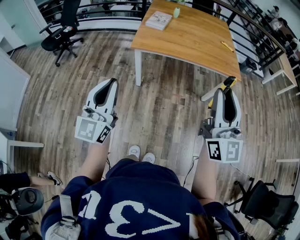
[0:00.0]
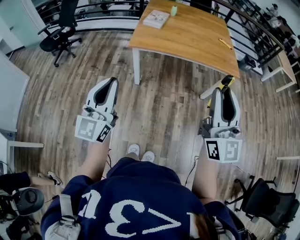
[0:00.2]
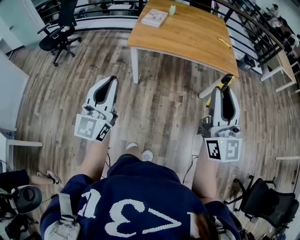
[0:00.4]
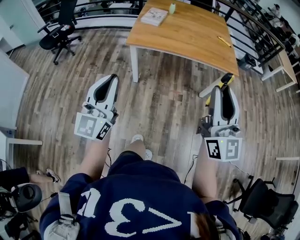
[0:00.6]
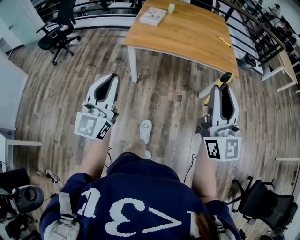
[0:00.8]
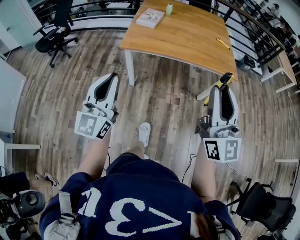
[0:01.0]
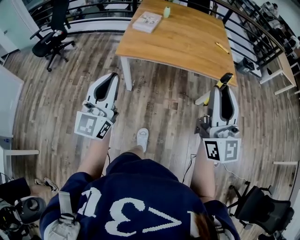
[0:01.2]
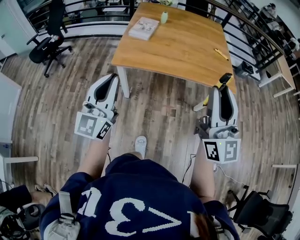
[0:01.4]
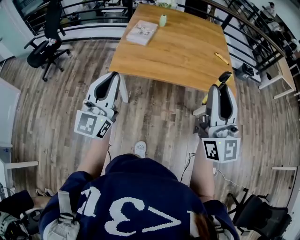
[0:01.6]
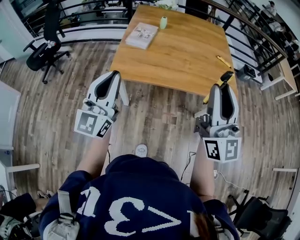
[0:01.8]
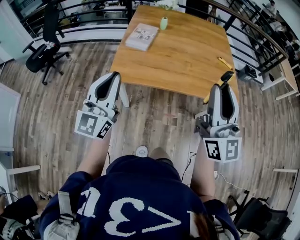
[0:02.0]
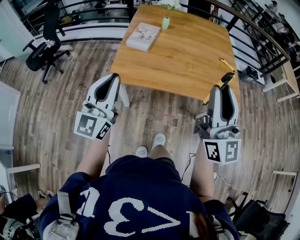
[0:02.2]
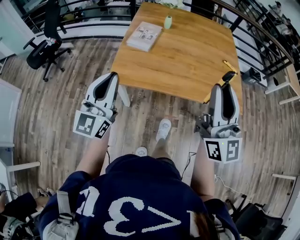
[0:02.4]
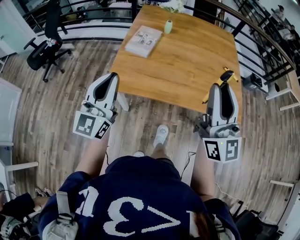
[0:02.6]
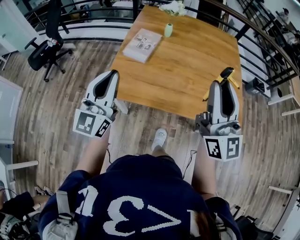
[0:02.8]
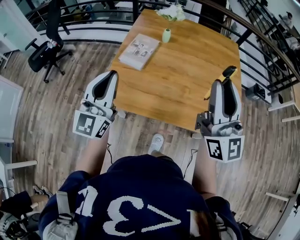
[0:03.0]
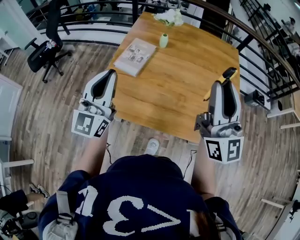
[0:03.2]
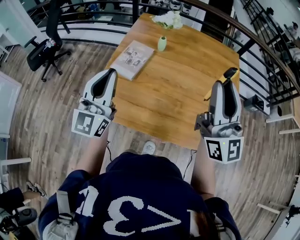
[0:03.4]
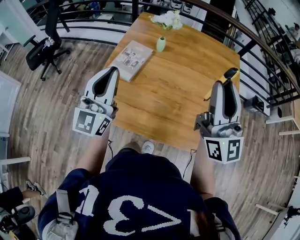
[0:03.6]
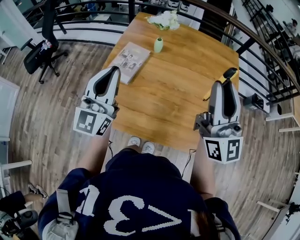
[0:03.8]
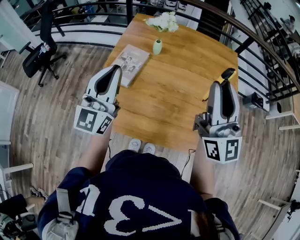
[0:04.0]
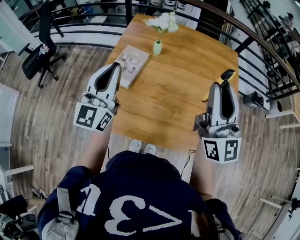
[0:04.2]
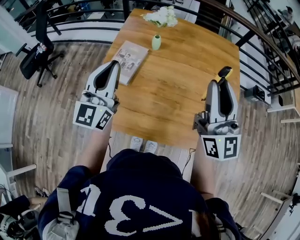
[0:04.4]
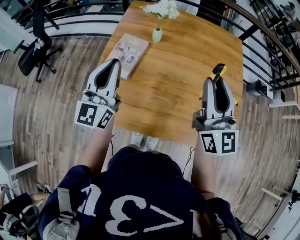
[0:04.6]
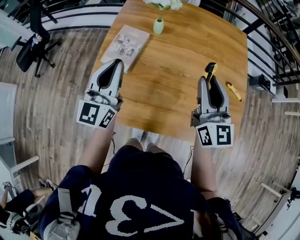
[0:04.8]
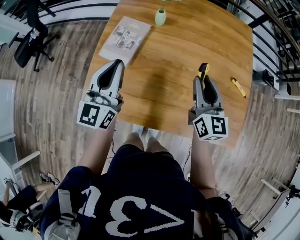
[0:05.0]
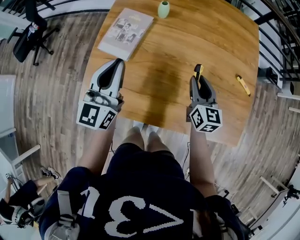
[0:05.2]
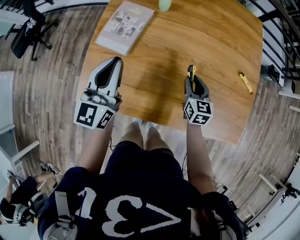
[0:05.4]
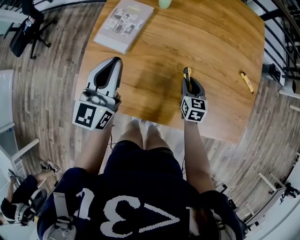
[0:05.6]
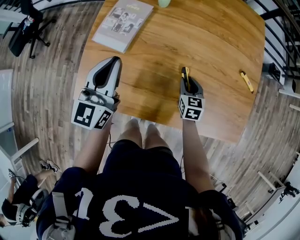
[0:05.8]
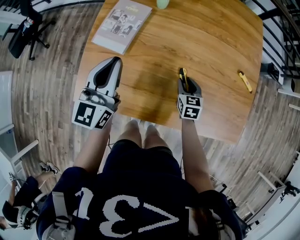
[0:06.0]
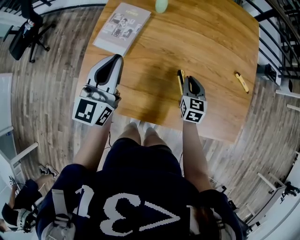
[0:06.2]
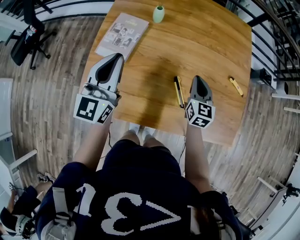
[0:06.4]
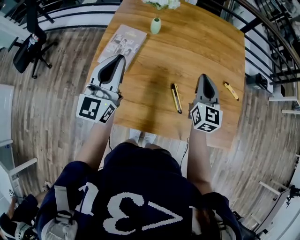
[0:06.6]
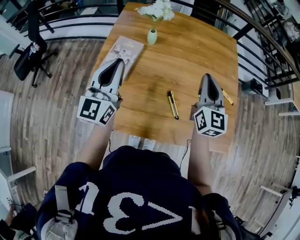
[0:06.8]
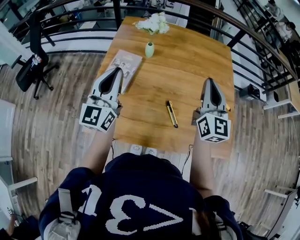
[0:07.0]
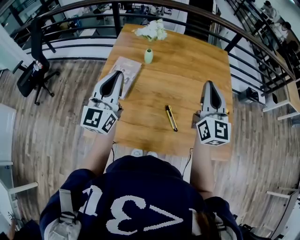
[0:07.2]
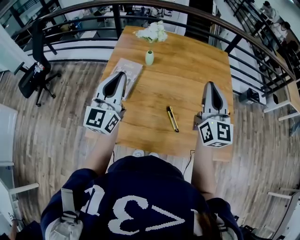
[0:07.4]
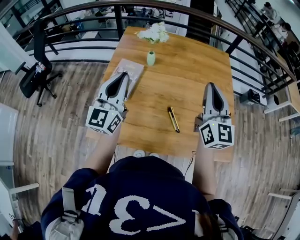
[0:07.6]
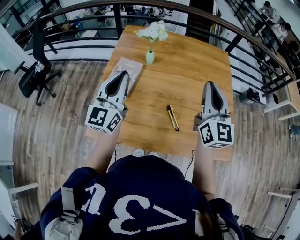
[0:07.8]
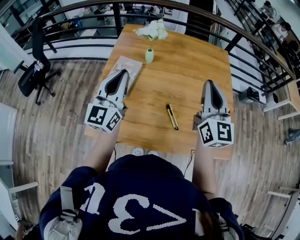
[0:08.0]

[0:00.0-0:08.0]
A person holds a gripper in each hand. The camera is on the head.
0:00.0 to 0:01.6: Both grippers move forward, approximately 25 cm.
0:01.6 to 0:03.2: Both grippers travel together forward, some 30 cm.
0:03.2 to 0:04.8: Both grippers travel together forward and downward, approximately 15 cm. The right gripper turns by roughly 20 degrees.
0:04.8 to 0:06.4: The right gripper goes approximately 20 cm downward, rotates roughly 30 degrees, and closes up.
0:06.4 to 0:08.0: The right gripper shifts approximately 25 cm upward, and rotates roughly 30 degrees, while the left gripper travels upward by approximately 10 cm.

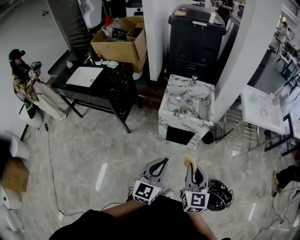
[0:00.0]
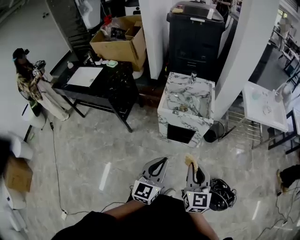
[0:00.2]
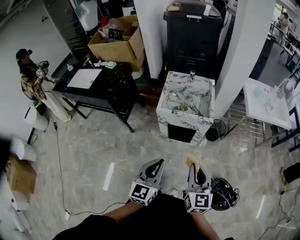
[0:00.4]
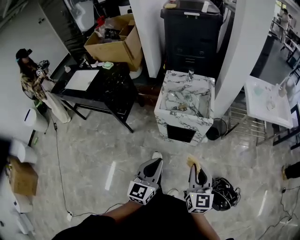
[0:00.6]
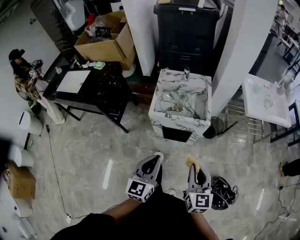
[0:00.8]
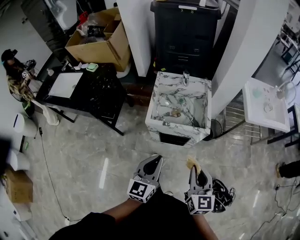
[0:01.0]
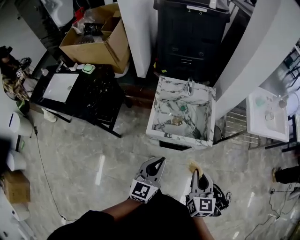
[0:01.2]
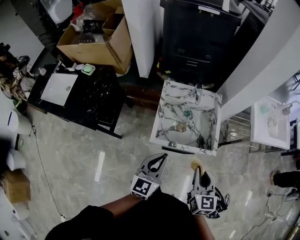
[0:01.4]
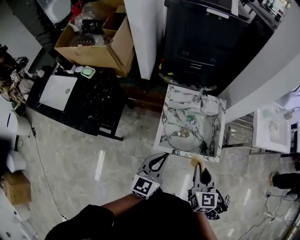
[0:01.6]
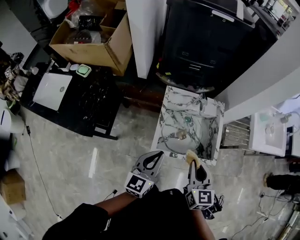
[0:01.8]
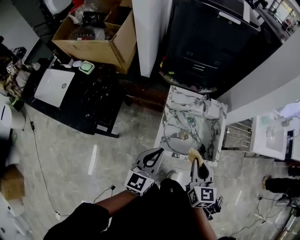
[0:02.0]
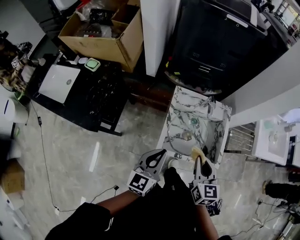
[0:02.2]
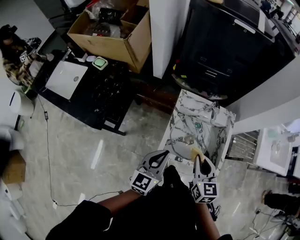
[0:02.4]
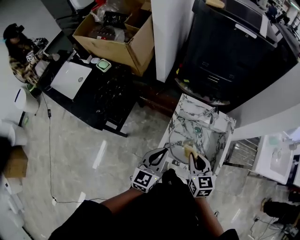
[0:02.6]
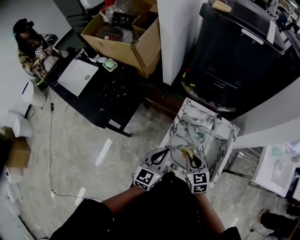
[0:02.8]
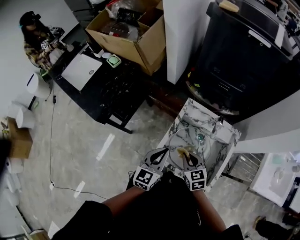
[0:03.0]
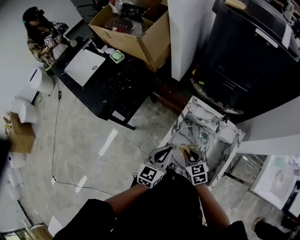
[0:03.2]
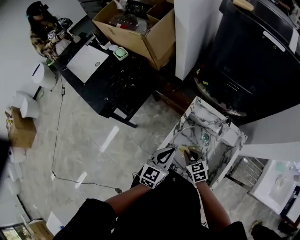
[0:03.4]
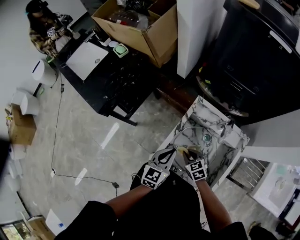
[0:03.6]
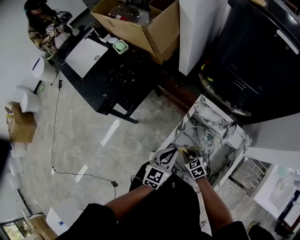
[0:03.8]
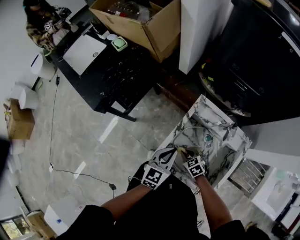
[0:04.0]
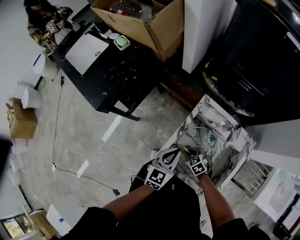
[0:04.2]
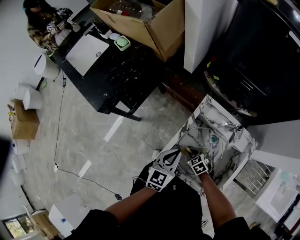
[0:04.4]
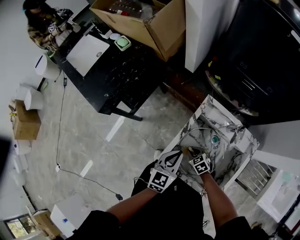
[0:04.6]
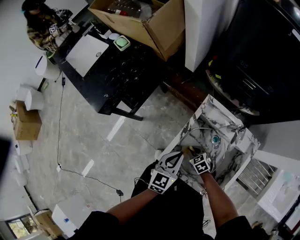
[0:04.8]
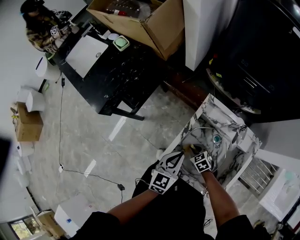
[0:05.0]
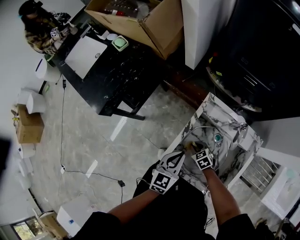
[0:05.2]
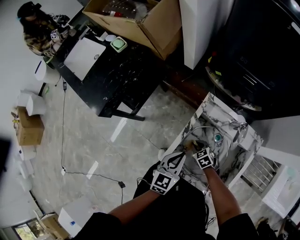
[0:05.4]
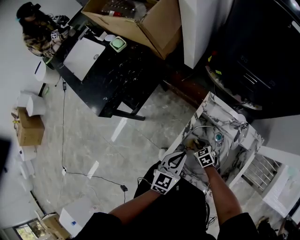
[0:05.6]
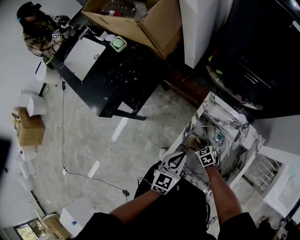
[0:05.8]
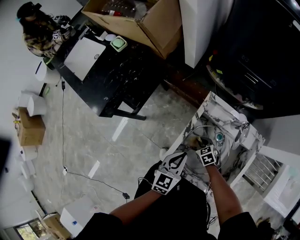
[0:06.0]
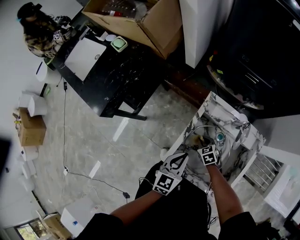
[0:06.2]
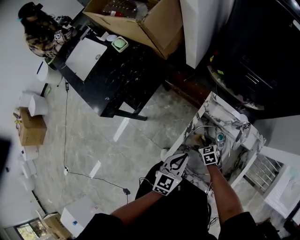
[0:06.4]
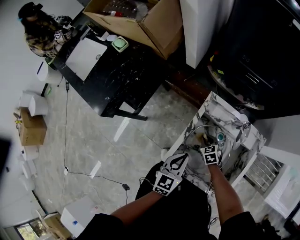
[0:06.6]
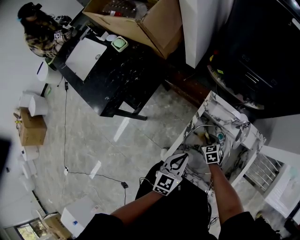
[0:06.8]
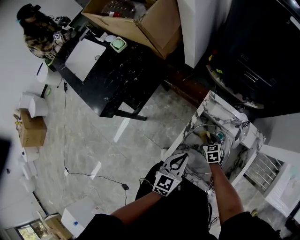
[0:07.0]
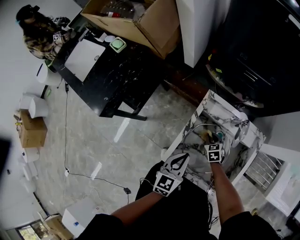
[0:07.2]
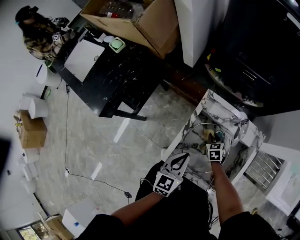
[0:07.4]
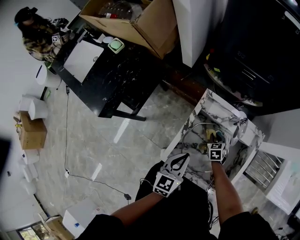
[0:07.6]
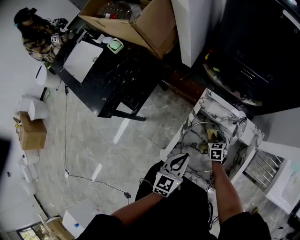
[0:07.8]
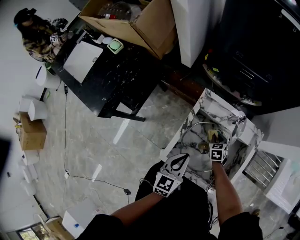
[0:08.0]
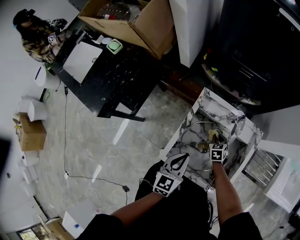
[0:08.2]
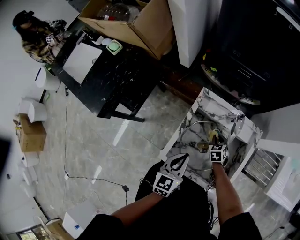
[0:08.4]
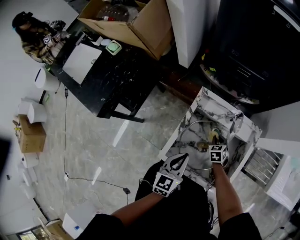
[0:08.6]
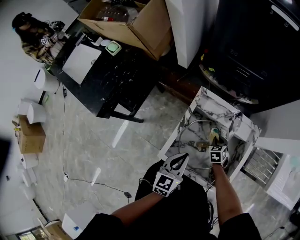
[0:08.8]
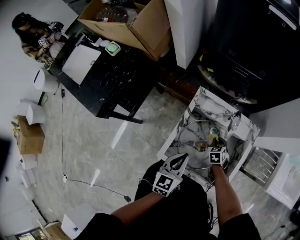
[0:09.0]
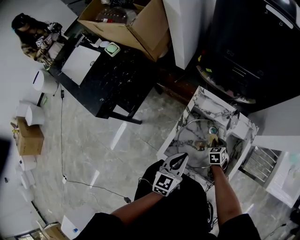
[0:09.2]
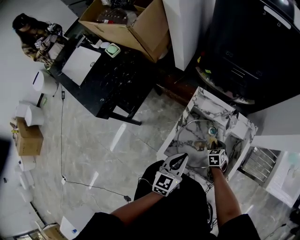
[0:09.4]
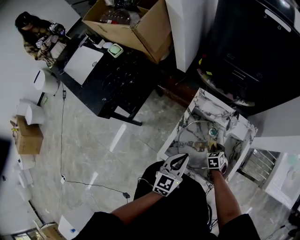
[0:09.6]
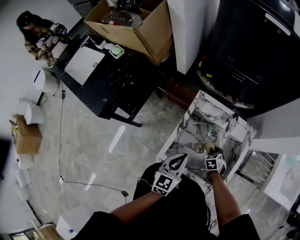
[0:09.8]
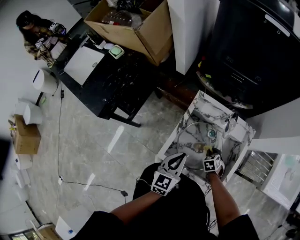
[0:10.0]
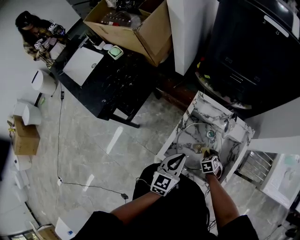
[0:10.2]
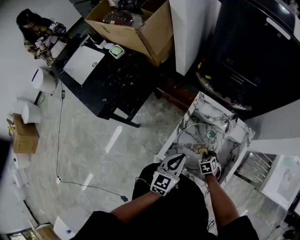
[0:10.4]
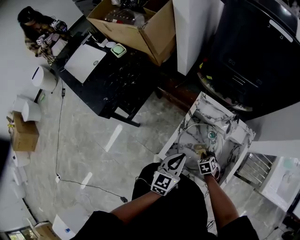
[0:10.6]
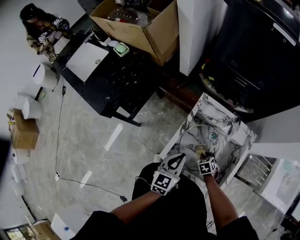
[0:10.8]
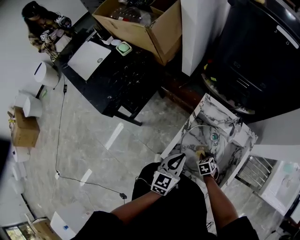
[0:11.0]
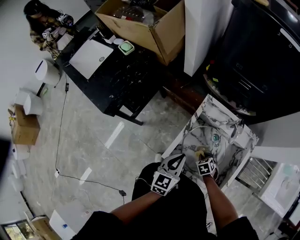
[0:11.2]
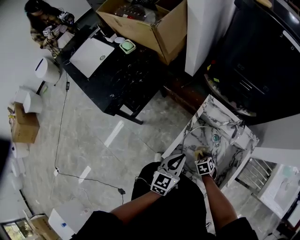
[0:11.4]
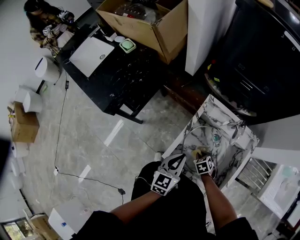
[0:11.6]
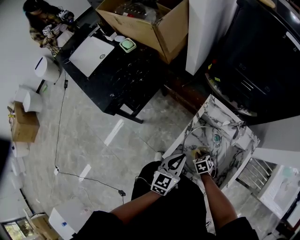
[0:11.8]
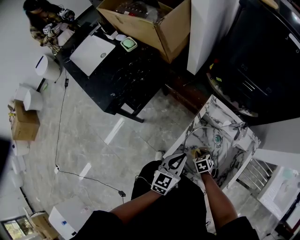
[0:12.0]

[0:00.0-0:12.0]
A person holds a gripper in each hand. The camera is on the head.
0:00.0 to 0:01.6: The grippers both shift forward by some 35 cm.
0:01.6 to 0:03.0: The right gripper shifts by roughly 20 cm, and turns by some 40 degrees. Meanwhile the left gripper moves roughly 10 cm.
0:03.0 to 0:04.4: The left gripper is displaced downward by about 10 cm. Meanwhile the right gripper shifts roughly 20 cm downward, and changes its angle by some 30 degrees.
0:04.4 to 0:06.0: The right gripper moves forward, roughly 5 cm.
0:06.0 to 0:07.6: The right gripper goes roughly 10 cm to the right, and swivels about 20 degrees.
0:07.6 to 0:09.0: The right gripper shifts roughly 5 cm to the right.
0:09.0 to 0:10.4: The right gripper travels backward by some 10 cm.
0:10.4 to 0:12.0: The right gripper moves to the left, some 10 cm.

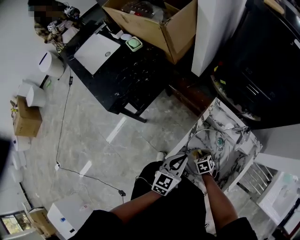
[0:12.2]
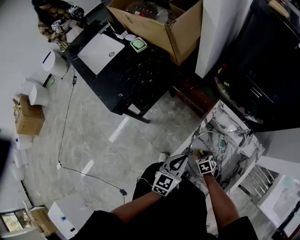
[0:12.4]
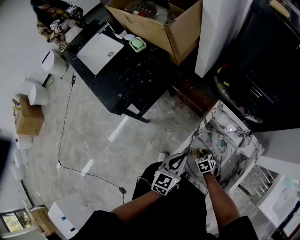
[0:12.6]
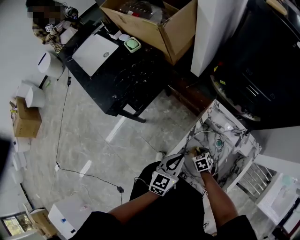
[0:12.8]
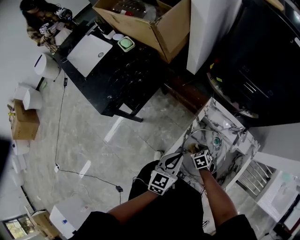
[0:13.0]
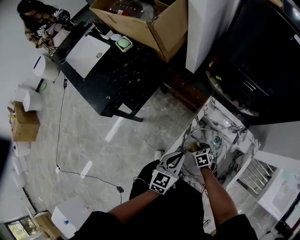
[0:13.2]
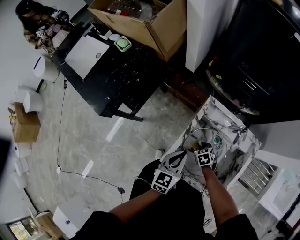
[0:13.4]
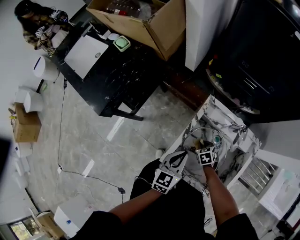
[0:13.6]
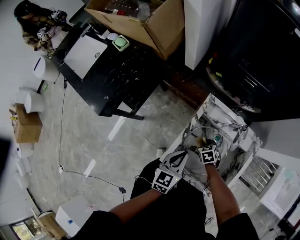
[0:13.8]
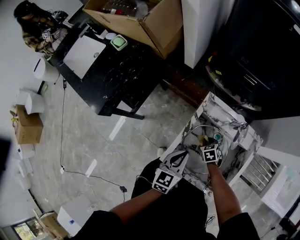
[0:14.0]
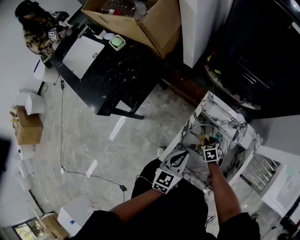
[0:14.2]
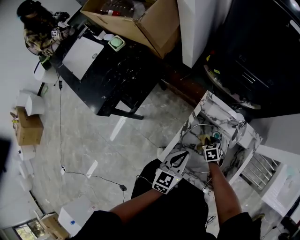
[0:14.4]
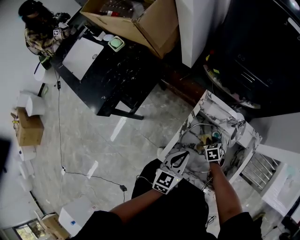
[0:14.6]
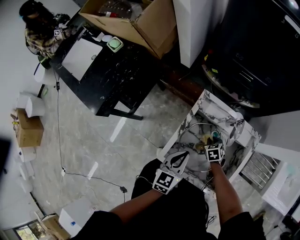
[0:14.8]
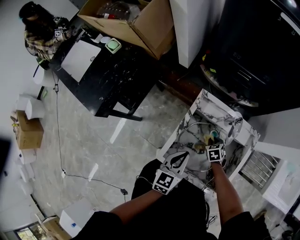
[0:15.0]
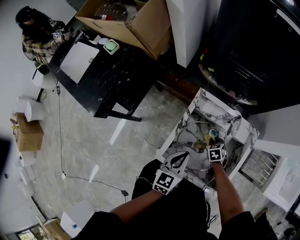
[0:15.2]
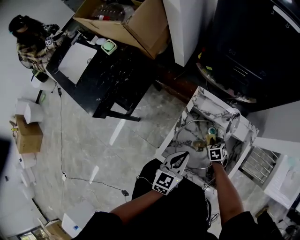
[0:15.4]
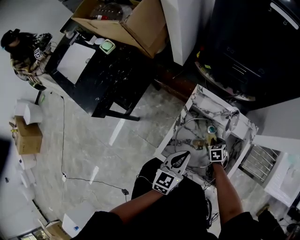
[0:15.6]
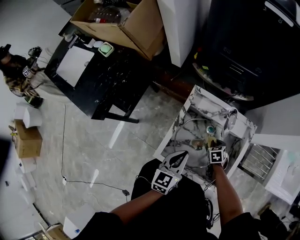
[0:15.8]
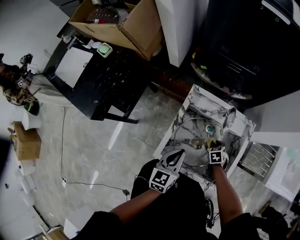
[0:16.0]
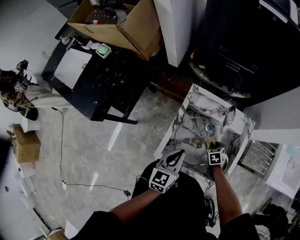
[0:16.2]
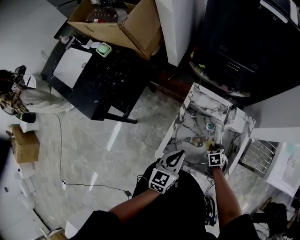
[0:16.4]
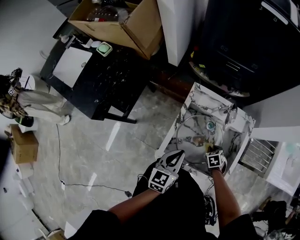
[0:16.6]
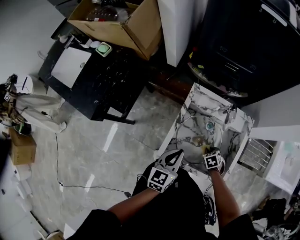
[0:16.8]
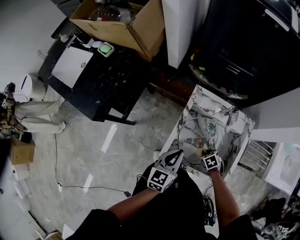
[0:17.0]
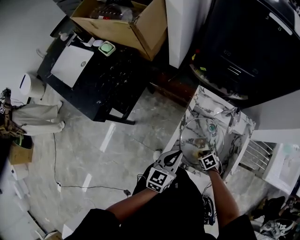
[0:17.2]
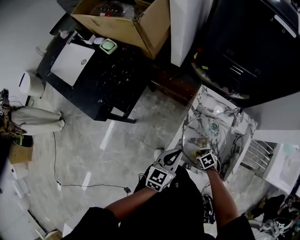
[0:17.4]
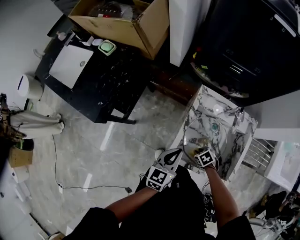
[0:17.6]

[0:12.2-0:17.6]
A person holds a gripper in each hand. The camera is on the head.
0:12.2 to 0:13.6: The right gripper is displaced forward by approximately 5 cm.
0:13.6 to 0:15.0: The right gripper travels to the right by about 10 cm.
0:15.0 to 0:16.2: The right gripper heads to the right and backward, covering roughly 10 cm.
0:16.2 to 0:17.6: The left gripper changes place by roughly 10 cm. Meanwhile the right gripper moves some 15 cm, and swivels roughly 20 degrees.
